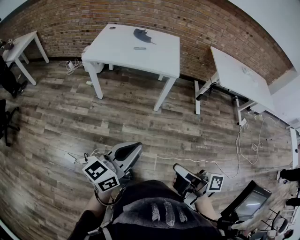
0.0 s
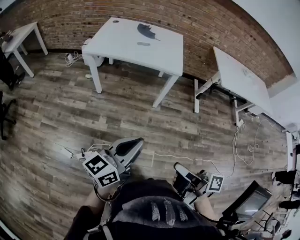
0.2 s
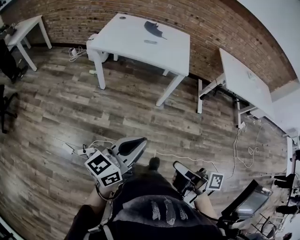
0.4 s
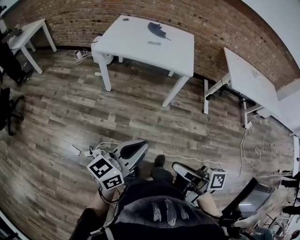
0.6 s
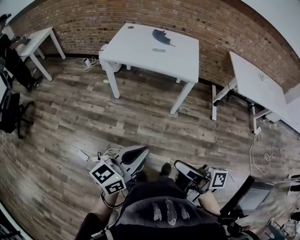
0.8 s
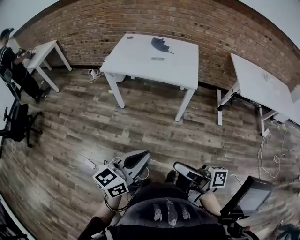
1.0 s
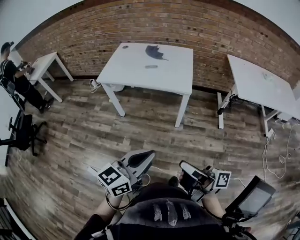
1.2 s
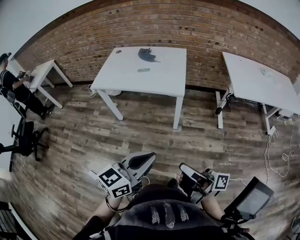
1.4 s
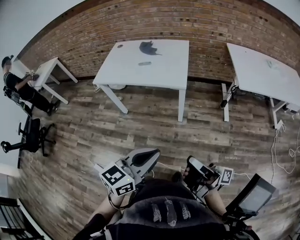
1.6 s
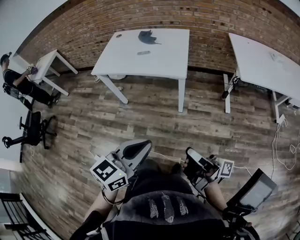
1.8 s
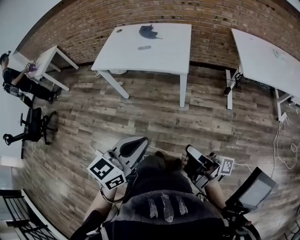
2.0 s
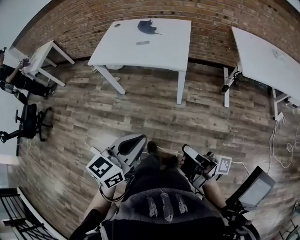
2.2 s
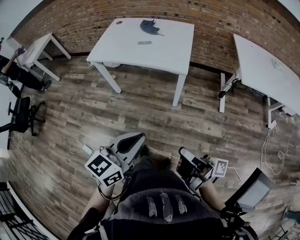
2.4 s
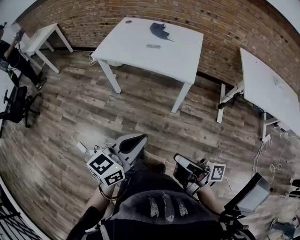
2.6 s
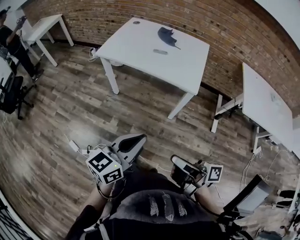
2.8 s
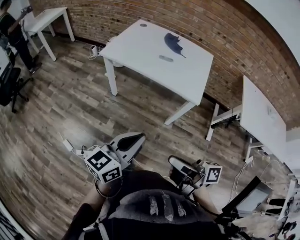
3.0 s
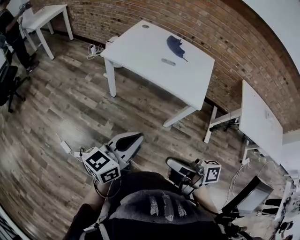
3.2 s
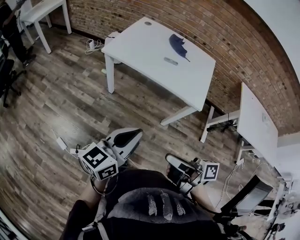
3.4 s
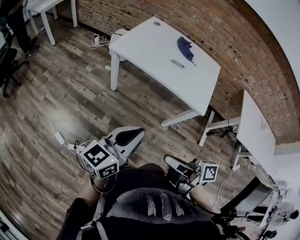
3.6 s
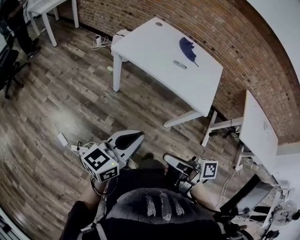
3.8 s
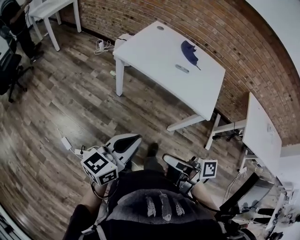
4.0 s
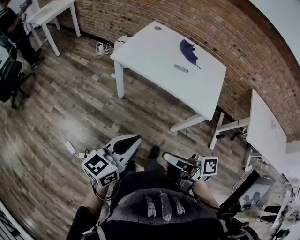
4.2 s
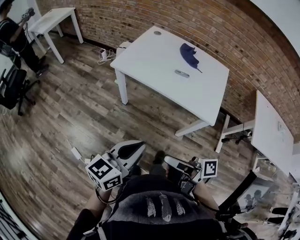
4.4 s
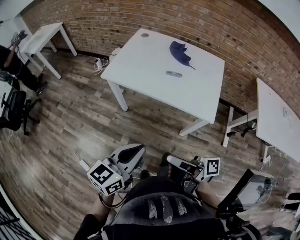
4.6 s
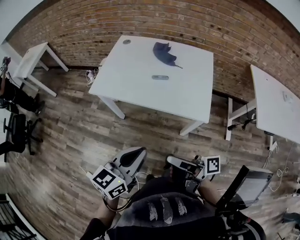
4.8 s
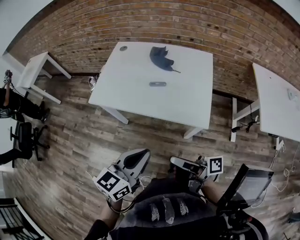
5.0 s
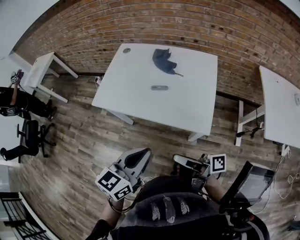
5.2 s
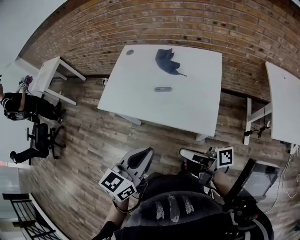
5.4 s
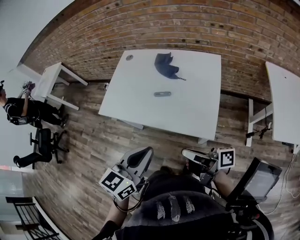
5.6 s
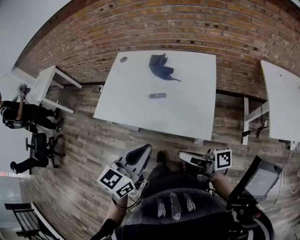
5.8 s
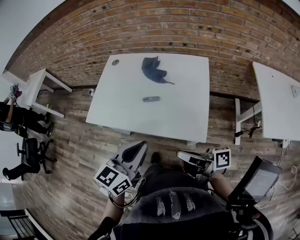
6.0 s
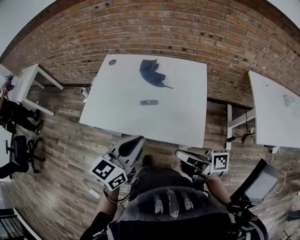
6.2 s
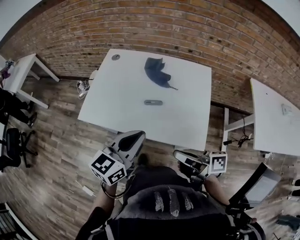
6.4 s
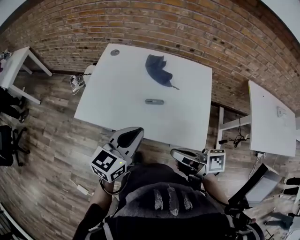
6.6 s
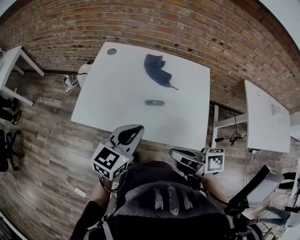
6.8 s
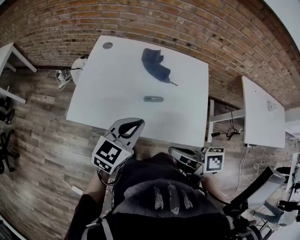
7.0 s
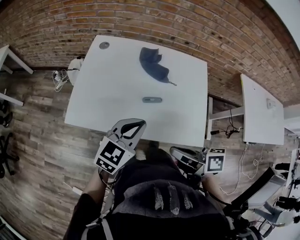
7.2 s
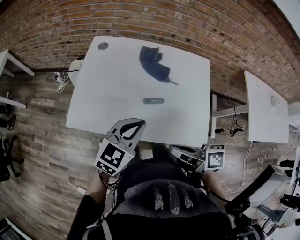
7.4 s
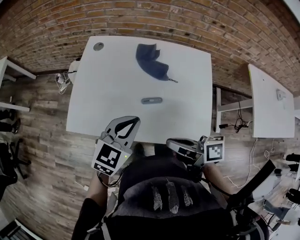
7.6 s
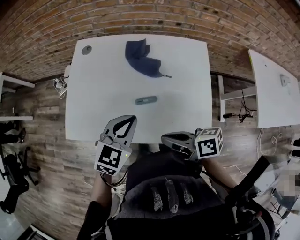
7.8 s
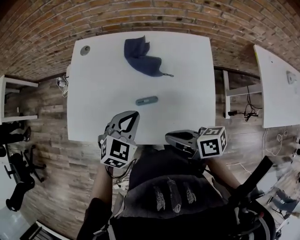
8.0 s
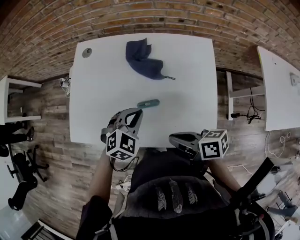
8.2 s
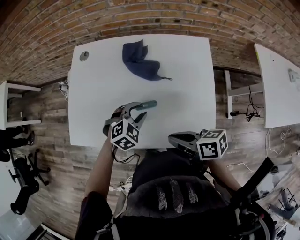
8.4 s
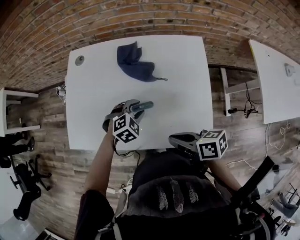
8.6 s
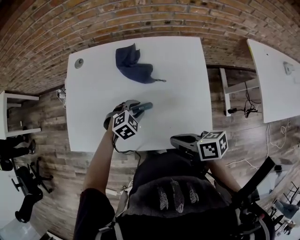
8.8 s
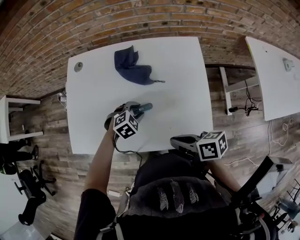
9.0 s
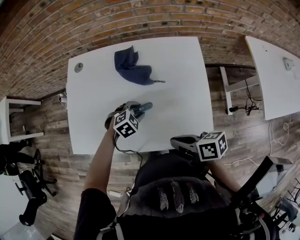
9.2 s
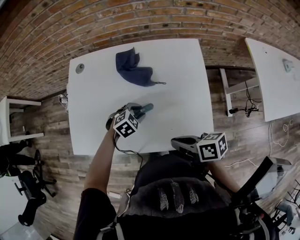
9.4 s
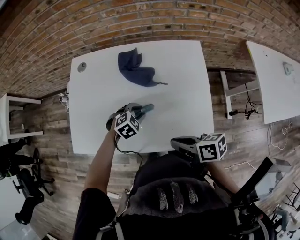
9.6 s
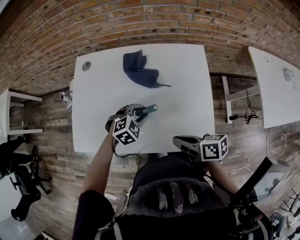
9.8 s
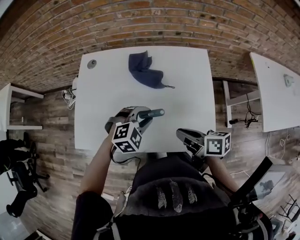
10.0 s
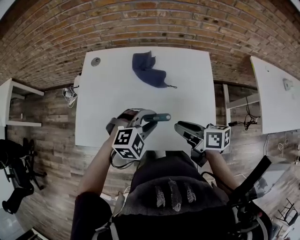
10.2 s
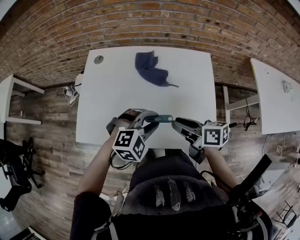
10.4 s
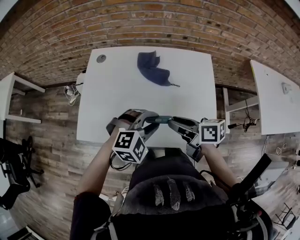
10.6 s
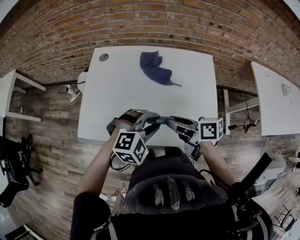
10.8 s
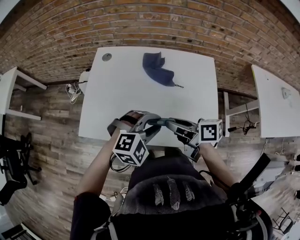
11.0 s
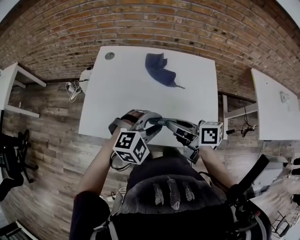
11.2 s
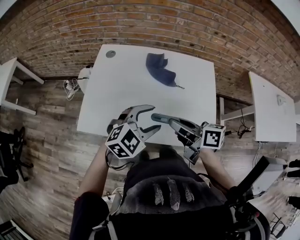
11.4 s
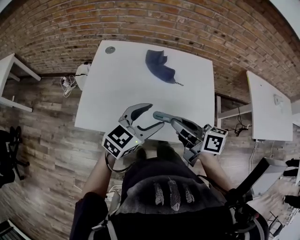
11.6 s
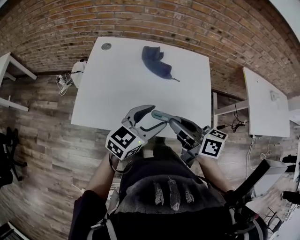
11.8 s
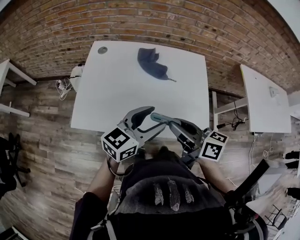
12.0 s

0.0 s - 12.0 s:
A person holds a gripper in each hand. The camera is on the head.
0.0 s - 1.6 s: Both grippers travel together to the right and forward, roughly 20 cm. The right gripper rotates approximately 30 degrees, while the left gripper changes its angle by about 20 degrees.
1.6 s - 3.0 s: The two grippers go about 20 cm to the left and forward. The right gripper swivels approximately 30 degrees, while the left gripper changes its angle by some 20 degrees.
3.0 s - 4.4 s: Both grippers travel together forward and to the left, roughly 15 cm.
4.4 s - 6.0 s: The left gripper heads forward and to the right, covering roughly 25 cm. The right gripper is displaced to the right and forward by roughly 25 cm.
6.0 s - 7.6 s: The right gripper goes about 15 cm forward and to the left, and changes its angle by roughly 30 degrees. Meanwhile the left gripper shifts some 20 cm forward, and changes its angle by approximately 20 degrees.
7.6 s - 9.0 s: The right gripper goes about 10 cm to the right and downward; the left gripper is displaced downward and to the right by roughly 25 cm, points its fingers some 40 degrees further downward, and opens up.
9.0 s - 10.4 s: The right gripper moves about 10 cm, and opens up; the left gripper goes about 15 cm upward, and rotates roughly 30 degrees.
10.4 s - 12.0 s: Both grippers move upward and backward, about 10 cm. The left gripper tips its fingers upward by some 40 degrees, and opens.

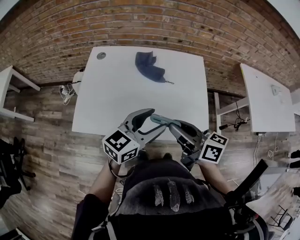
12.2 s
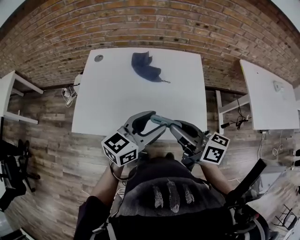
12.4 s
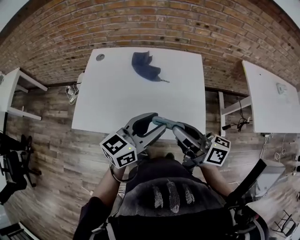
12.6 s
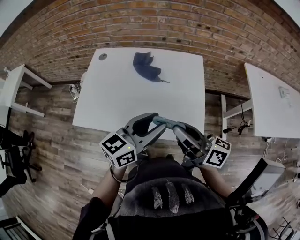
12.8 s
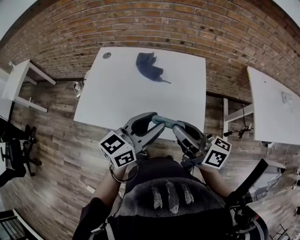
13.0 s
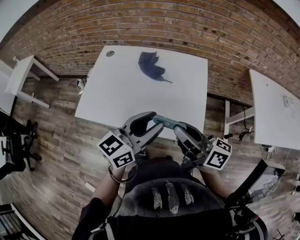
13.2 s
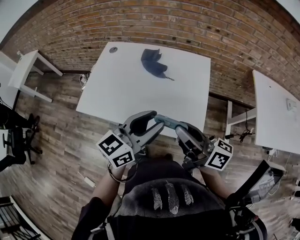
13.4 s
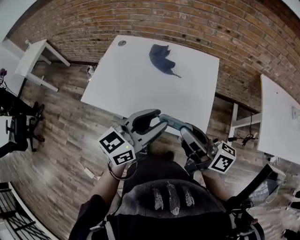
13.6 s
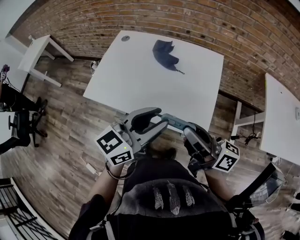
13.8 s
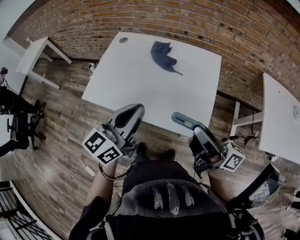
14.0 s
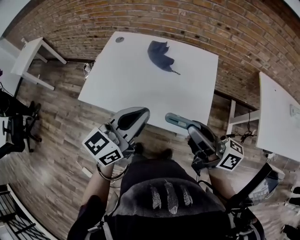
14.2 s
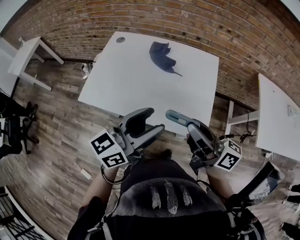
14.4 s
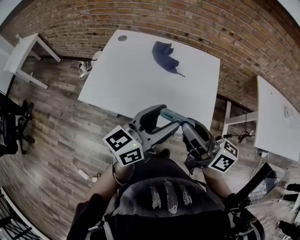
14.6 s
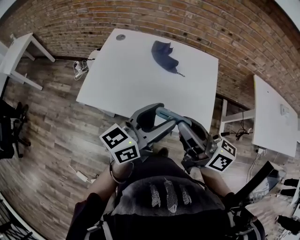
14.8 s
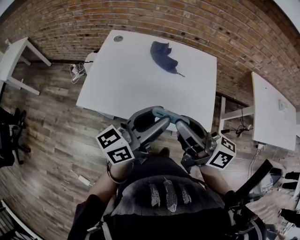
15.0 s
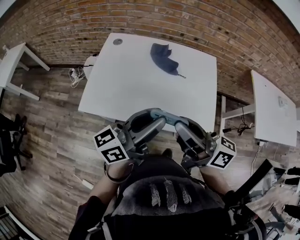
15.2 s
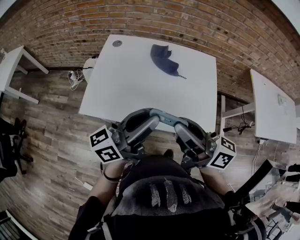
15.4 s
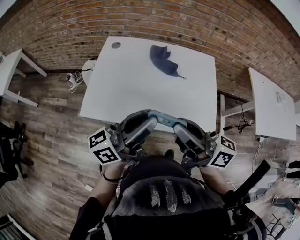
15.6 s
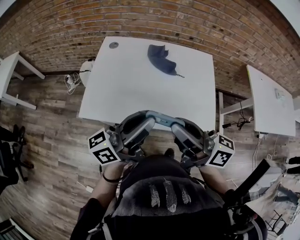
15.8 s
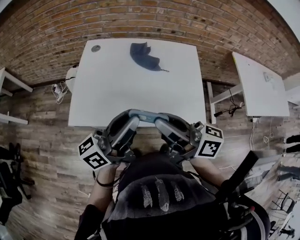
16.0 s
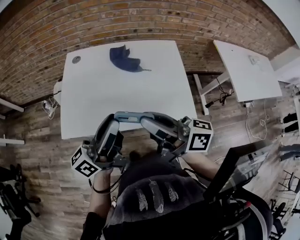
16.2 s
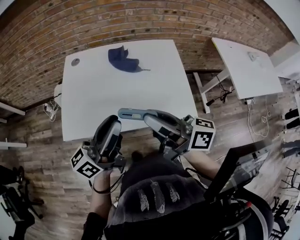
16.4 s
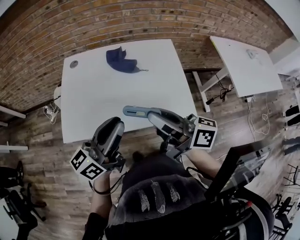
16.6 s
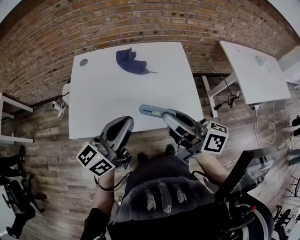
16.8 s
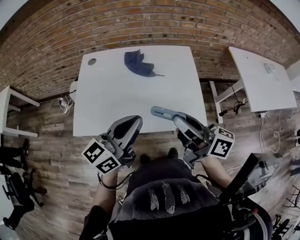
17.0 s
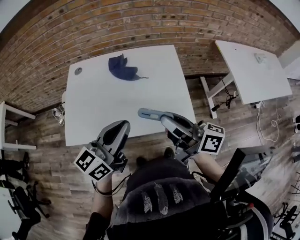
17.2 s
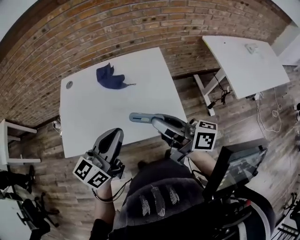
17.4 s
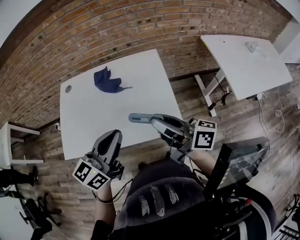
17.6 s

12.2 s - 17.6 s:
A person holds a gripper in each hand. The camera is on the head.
12.2 s - 13.6 s: The right gripper goes approximately 15 cm to the right and backward, and changes its angle by approximately 20 degrees; the left gripper heads to the right, backward and upward, covering roughly 10 cm, and closes up.
13.6 s - 15.0 s: The grippers both shift to the left by some 10 cm. The left gripper changes its angle by approximately 20 degrees, and closes and opens again.
15.0 s - 16.2 s: The left gripper shifts about 10 cm to the left. Meanwhile the right gripper goes roughly 5 cm to the left.
16.2 s - 17.6 s: Both grippers move to the right, some 20 cm. The left gripper rotates about 40 degrees.

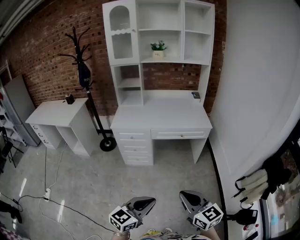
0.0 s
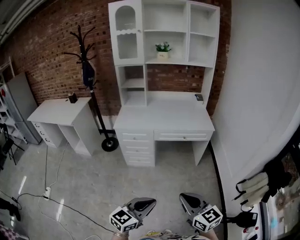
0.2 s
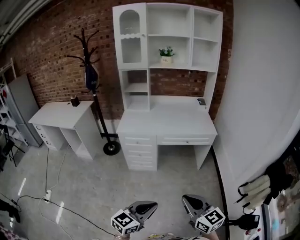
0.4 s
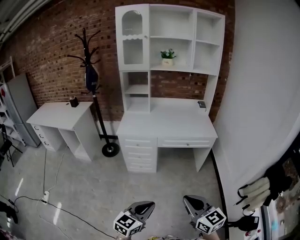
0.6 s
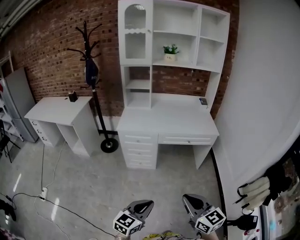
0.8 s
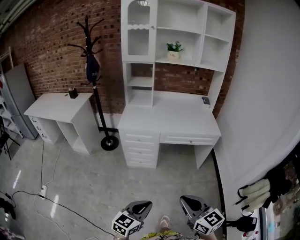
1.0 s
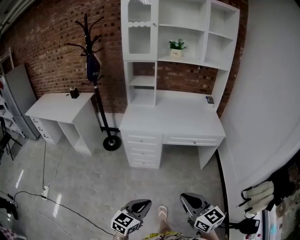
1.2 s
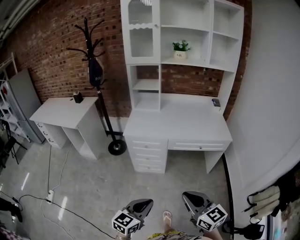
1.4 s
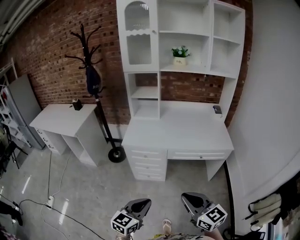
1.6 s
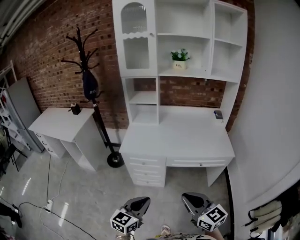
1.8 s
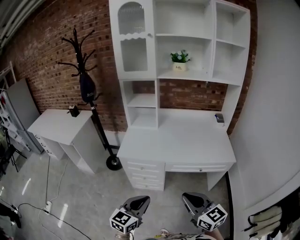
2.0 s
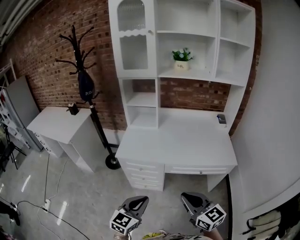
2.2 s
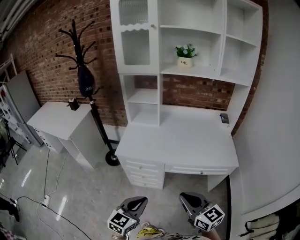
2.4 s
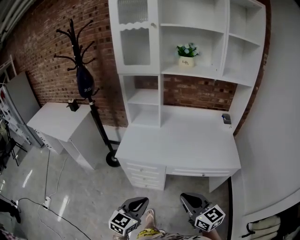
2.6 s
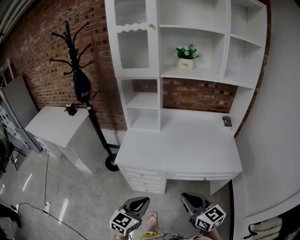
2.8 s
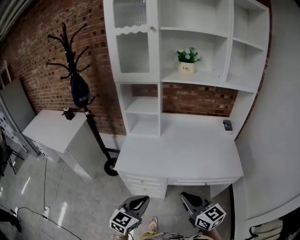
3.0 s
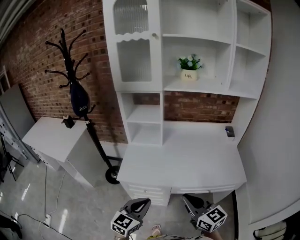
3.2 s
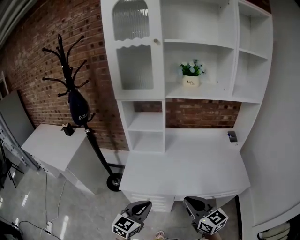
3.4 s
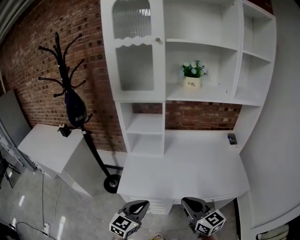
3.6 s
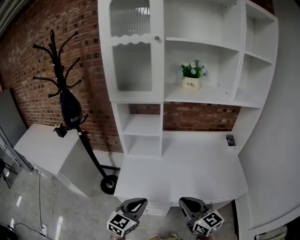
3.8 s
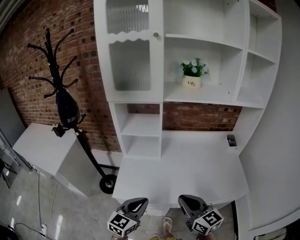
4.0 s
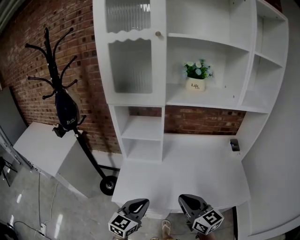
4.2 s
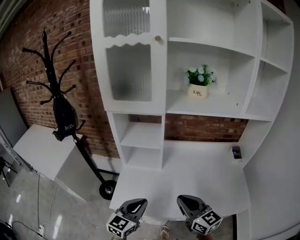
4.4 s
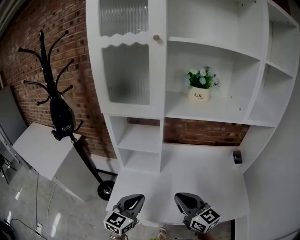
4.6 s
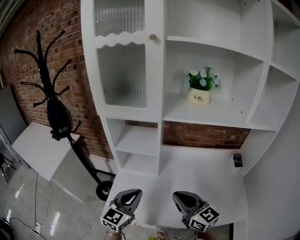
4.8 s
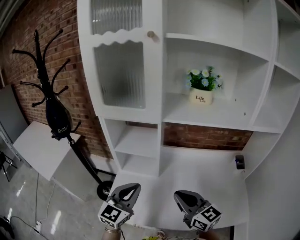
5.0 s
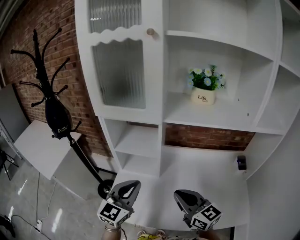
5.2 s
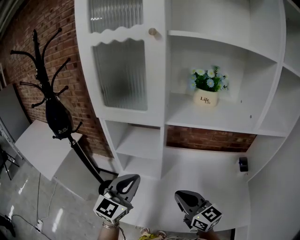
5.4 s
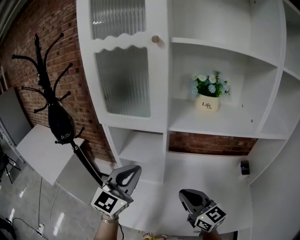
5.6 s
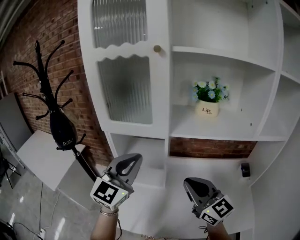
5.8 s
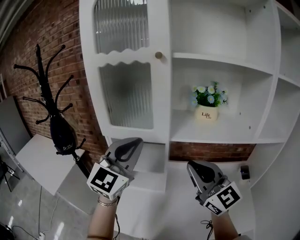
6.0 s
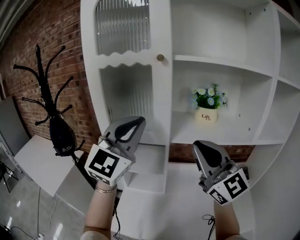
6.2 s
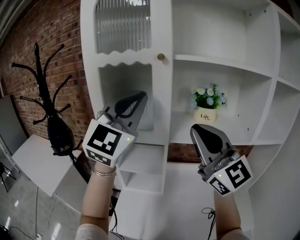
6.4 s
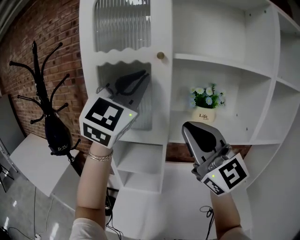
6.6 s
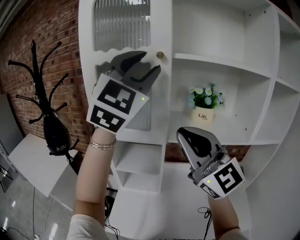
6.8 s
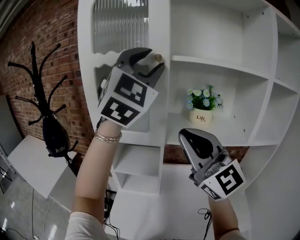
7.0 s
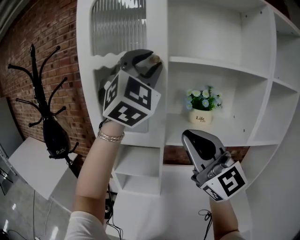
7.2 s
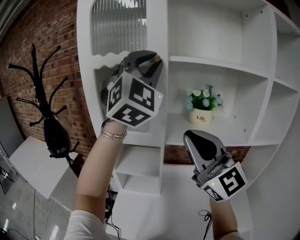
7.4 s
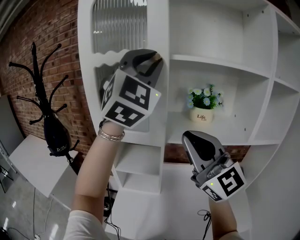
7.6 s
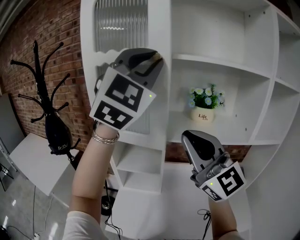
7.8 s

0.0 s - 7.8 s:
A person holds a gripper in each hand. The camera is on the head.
0.0 s - 1.6 s: The two grippers go some 25 cm forward and to the left.
1.6 s - 3.2 s: The two grippers go approximately 30 cm forward.
3.2 s - 4.6 s: The two grippers go about 25 cm forward.
4.6 s - 6.2 s: The grippers both shift upward and forward by about 35 cm. The right gripper rotates roughly 40 degrees, while the left gripper swivels about 40 degrees.
6.2 s - 7.8 s: The left gripper heads upward, covering approximately 15 cm, rotates some 20 degrees, and opens and closes again.
